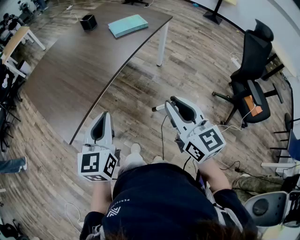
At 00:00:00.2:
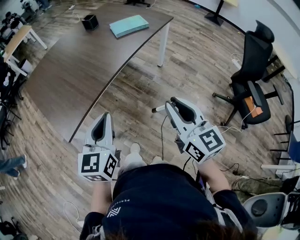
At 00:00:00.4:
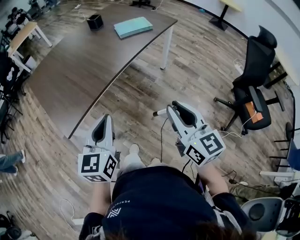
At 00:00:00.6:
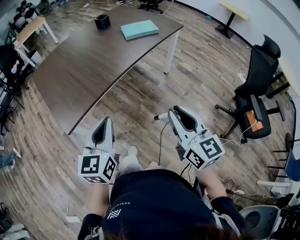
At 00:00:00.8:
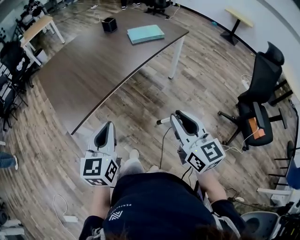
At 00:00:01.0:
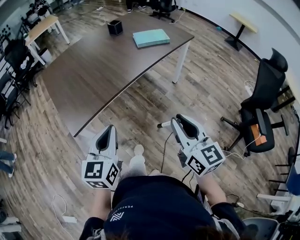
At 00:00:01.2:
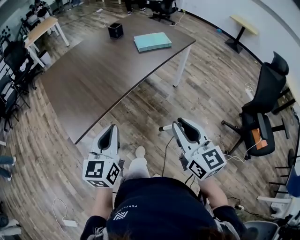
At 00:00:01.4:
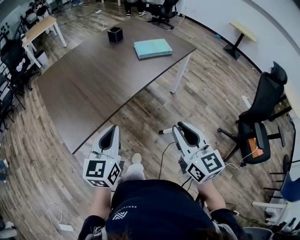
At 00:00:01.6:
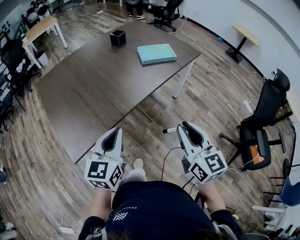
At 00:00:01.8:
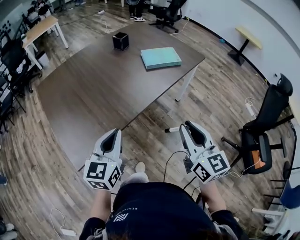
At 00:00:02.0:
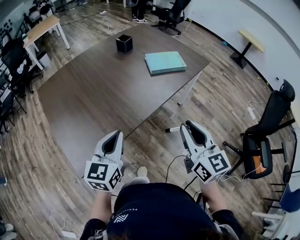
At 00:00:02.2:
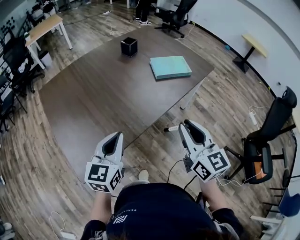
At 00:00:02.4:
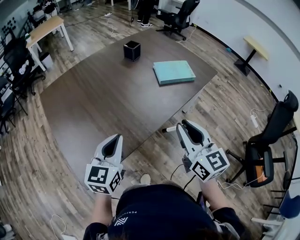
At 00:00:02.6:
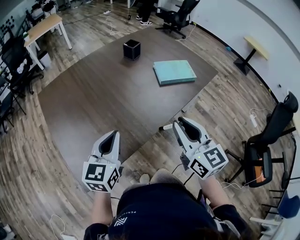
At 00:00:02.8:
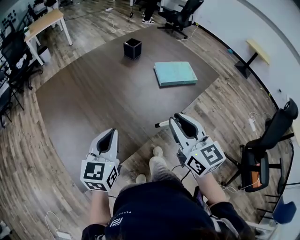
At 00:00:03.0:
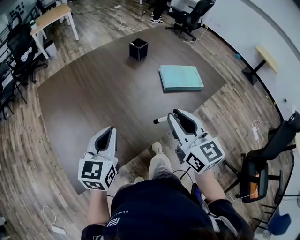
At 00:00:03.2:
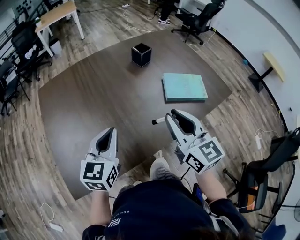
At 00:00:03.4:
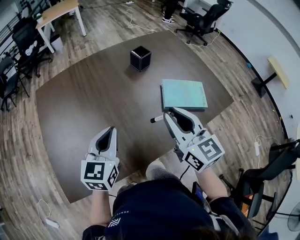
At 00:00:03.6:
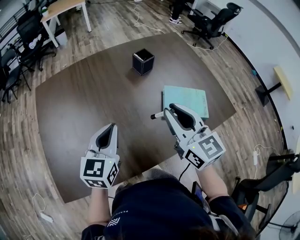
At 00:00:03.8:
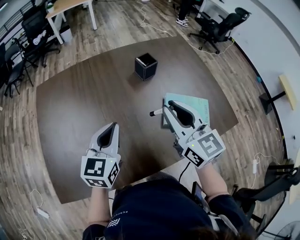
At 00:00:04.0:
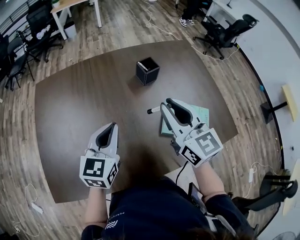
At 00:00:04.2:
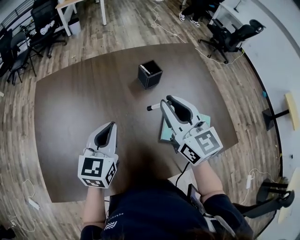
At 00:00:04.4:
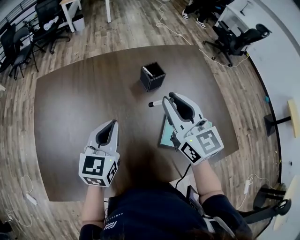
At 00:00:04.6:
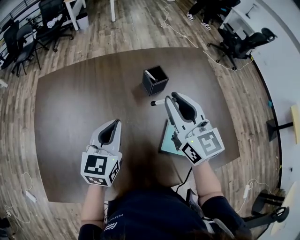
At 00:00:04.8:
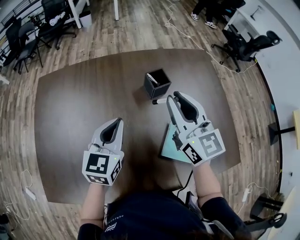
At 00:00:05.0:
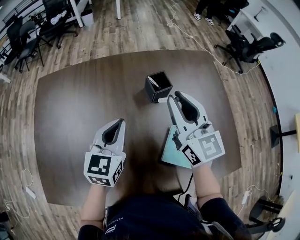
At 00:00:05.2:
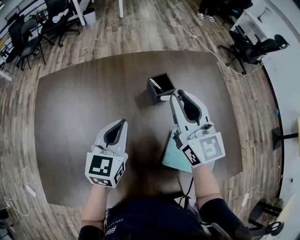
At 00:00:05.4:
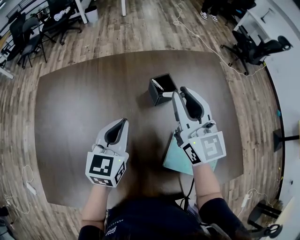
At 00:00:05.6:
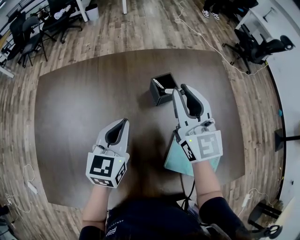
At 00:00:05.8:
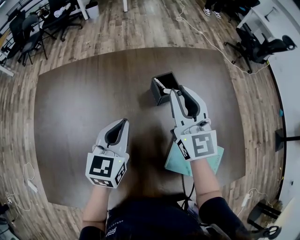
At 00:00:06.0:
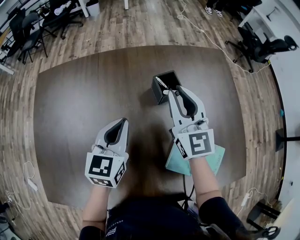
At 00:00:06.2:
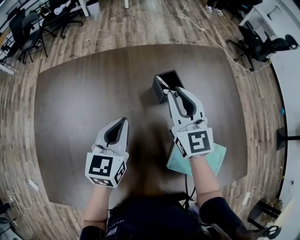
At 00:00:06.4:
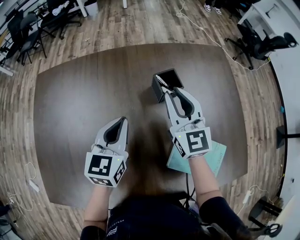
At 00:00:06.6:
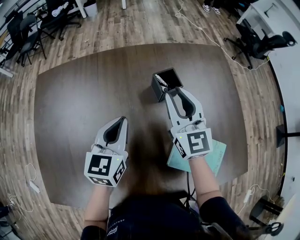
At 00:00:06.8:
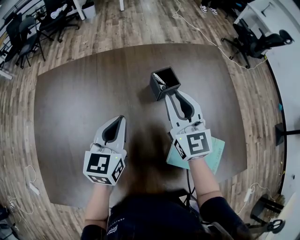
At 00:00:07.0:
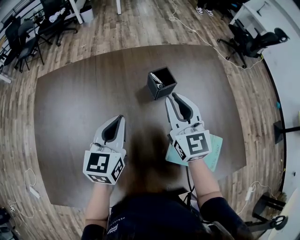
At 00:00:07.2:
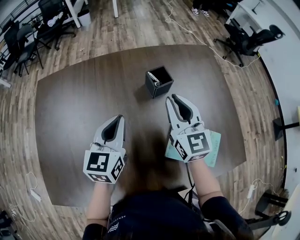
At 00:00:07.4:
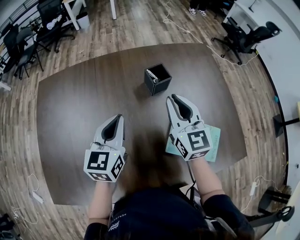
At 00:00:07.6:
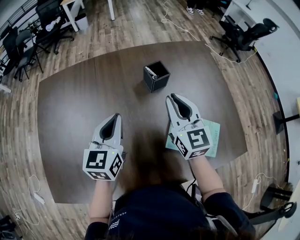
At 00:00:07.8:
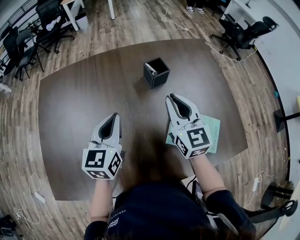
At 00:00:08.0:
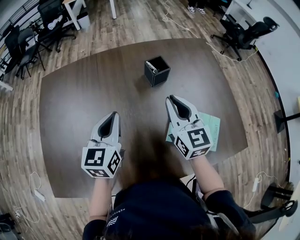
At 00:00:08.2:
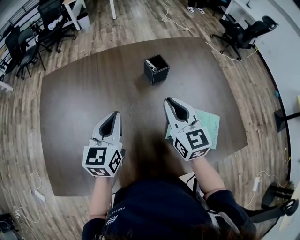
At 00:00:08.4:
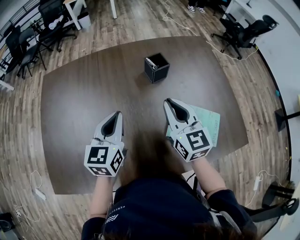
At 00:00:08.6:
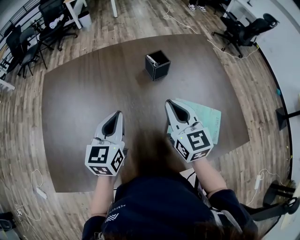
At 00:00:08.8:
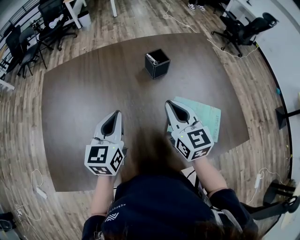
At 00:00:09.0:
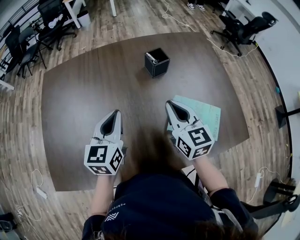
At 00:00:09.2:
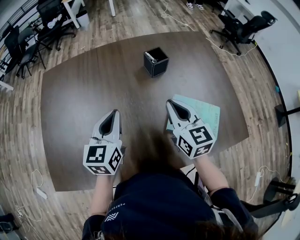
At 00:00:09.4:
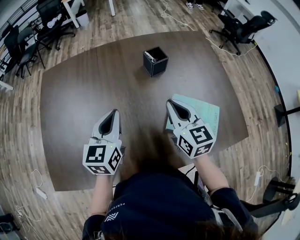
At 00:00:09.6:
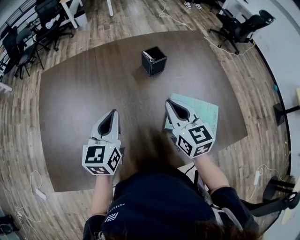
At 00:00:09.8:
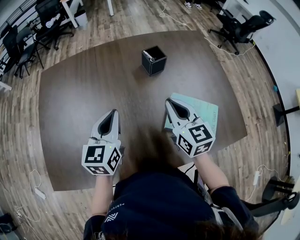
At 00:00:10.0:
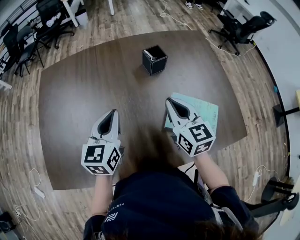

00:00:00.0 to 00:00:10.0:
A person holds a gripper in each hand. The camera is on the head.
00:00:00.0 to 00:00:01.4: The grippers both shift forward by about 5 cm.
00:00:01.4 to 00:00:02.8: The grippers both shift forward by about 25 cm.
00:00:02.8 to 00:00:04.2: The left gripper moves forward and to the right, approximately 25 cm, and swivels about 20 degrees. The right gripper heads forward, covering about 35 cm, and turns by roughly 30 degrees.
00:00:04.2 to 00:00:05.8: The grippers both shift forward by some 15 cm.
00:00:05.8 to 00:00:07.2: The right gripper is displaced backward by some 5 cm.
00:00:07.2 to 00:00:08.6: The grippers both shift backward by about 10 cm.
00:00:08.6 to 00:00:10.0: There are only small adjustments of the grippers.

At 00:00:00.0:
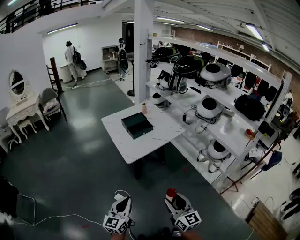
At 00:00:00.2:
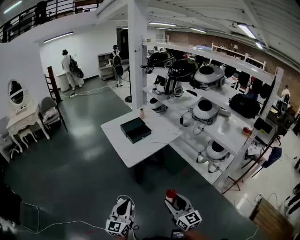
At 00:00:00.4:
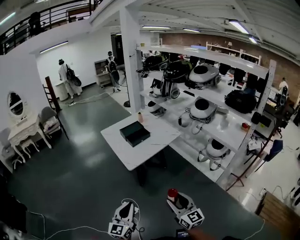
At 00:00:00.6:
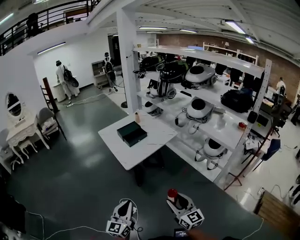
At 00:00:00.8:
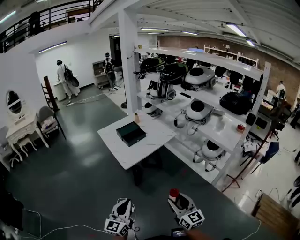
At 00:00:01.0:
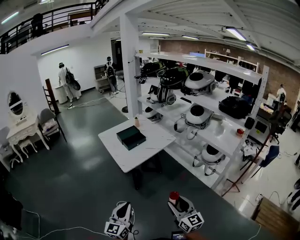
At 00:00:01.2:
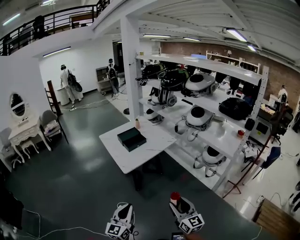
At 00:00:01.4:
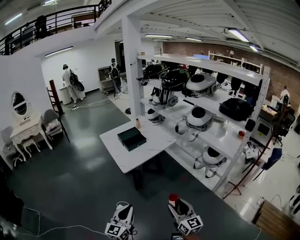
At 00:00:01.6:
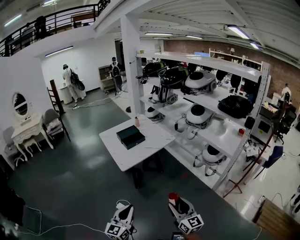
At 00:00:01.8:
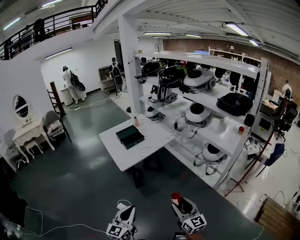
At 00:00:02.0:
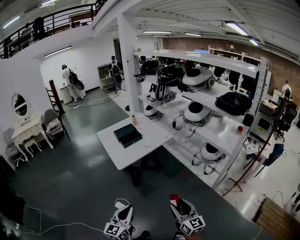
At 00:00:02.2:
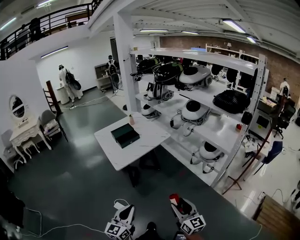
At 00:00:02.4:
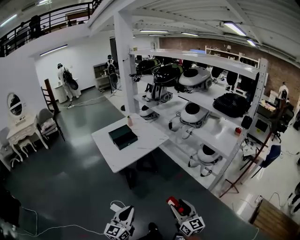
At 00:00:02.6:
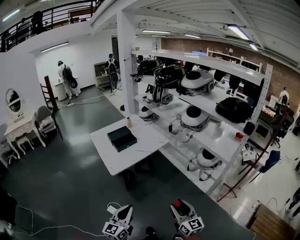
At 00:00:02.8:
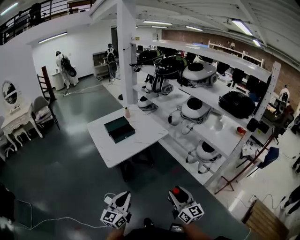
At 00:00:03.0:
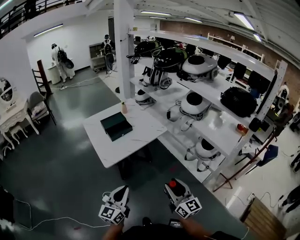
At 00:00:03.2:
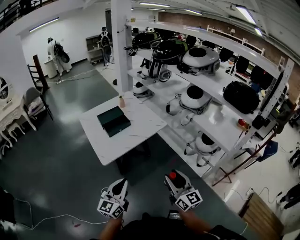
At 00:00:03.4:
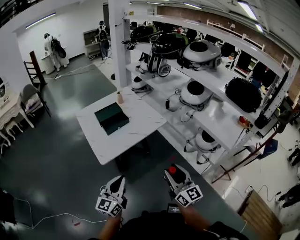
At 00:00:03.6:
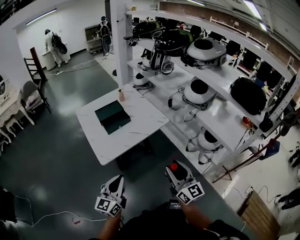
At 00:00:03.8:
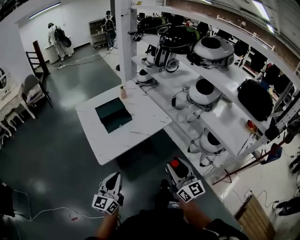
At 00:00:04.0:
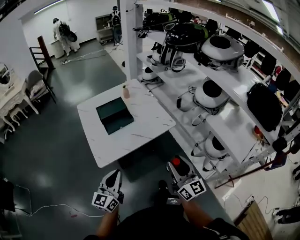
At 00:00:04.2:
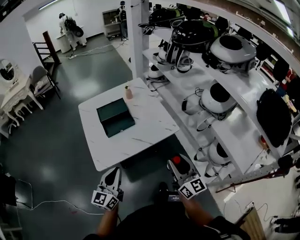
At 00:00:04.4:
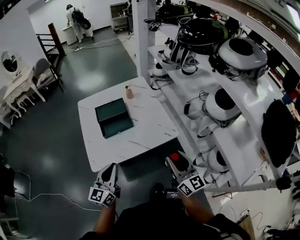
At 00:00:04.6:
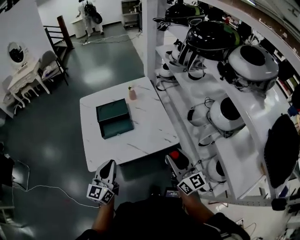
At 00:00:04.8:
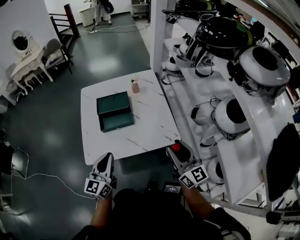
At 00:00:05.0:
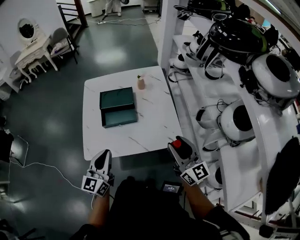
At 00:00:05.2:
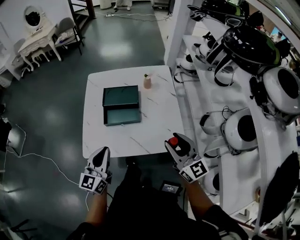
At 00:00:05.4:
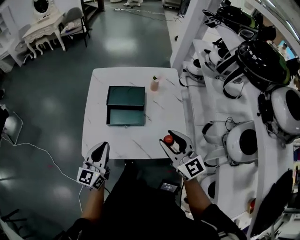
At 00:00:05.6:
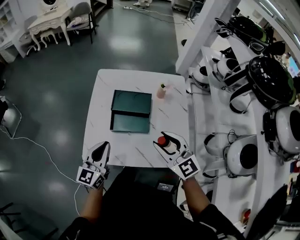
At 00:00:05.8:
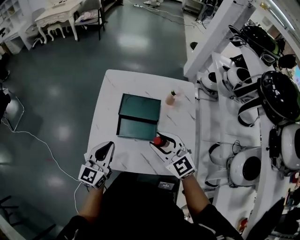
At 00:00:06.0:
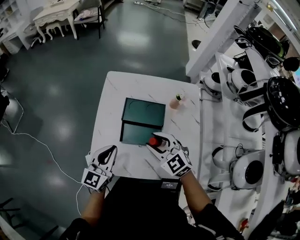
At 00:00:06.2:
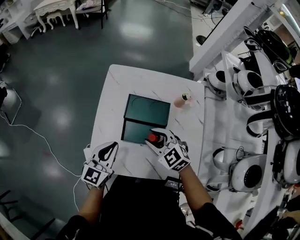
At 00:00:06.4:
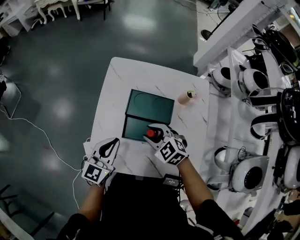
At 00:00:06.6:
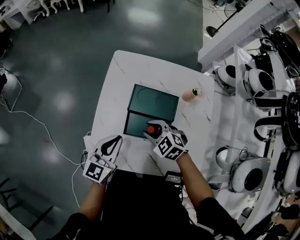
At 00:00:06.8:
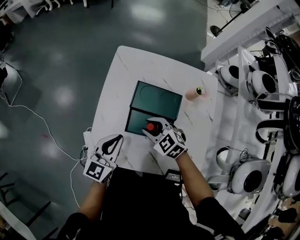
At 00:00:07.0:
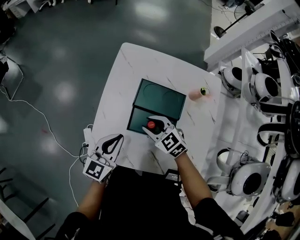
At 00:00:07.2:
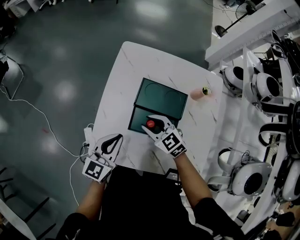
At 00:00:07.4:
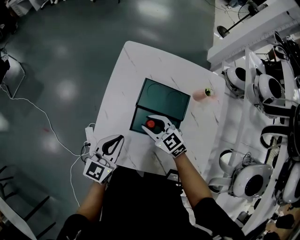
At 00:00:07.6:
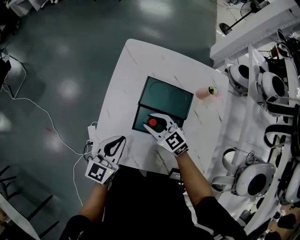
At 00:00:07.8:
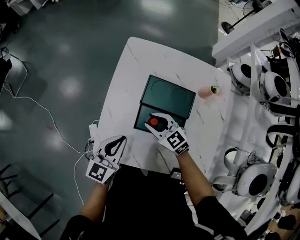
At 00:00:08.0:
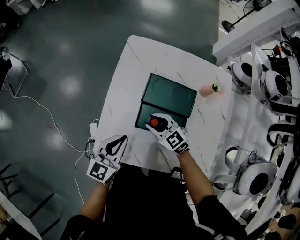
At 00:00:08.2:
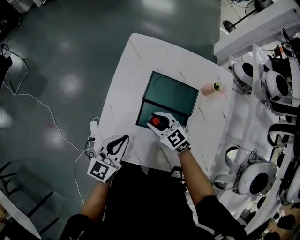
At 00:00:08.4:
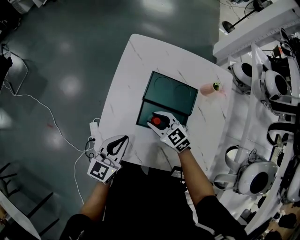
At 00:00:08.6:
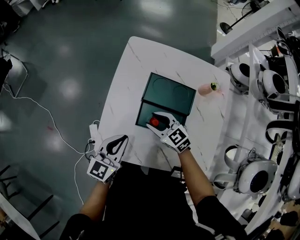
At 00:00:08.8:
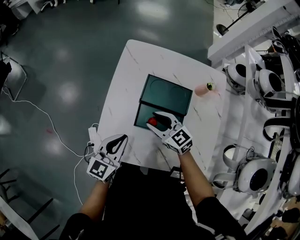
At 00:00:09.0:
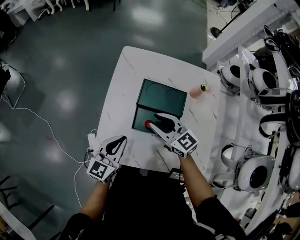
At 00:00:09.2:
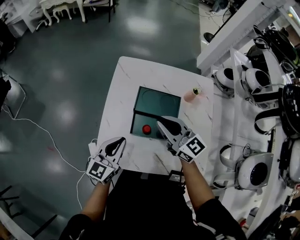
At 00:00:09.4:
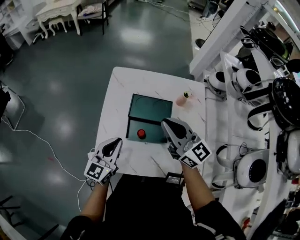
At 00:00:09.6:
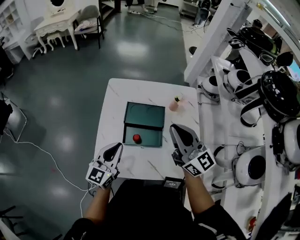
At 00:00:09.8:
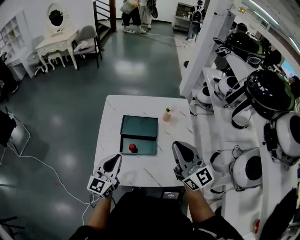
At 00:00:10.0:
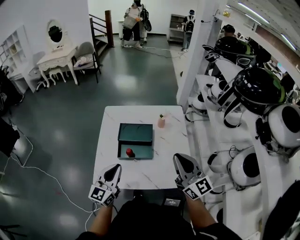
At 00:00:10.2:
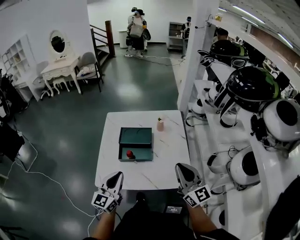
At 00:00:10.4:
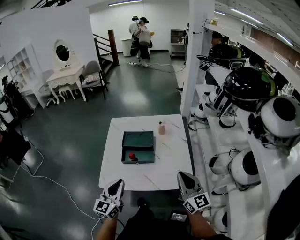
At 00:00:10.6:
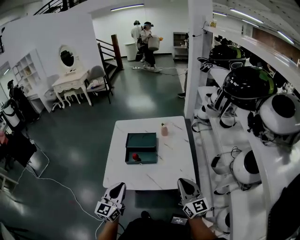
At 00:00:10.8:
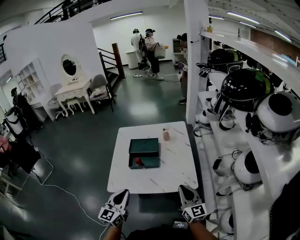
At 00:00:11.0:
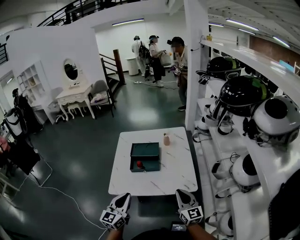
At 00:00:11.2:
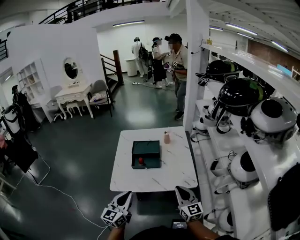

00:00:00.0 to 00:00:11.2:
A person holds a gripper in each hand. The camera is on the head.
00:00:00.0 to 00:00:01.6: The two grippers go about 10 cm to the right and backward.
00:00:01.6 to 00:00:03.2: The grippers both shift forward by some 20 cm.
00:00:03.2 to 00:00:04.8: The left gripper ends up roughly 30 cm from where it was, and changes its angle by some 30 degrees; the right gripper shifts by some 40 cm, and turns by roughly 20 degrees.
00:00:04.8 to 00:00:06.4: The right gripper moves some 40 cm, and tilts its fingers some 50 degrees downward, while the left gripper ends up approximately 25 cm from where it was.
00:00:06.4 to 00:00:08.0: The right gripper heads downward, covering roughly 5 cm, while the left gripper changes place by approximately 5 cm.
00:00:08.0 to 00:00:09.6: The left gripper shifts roughly 10 cm upward, while the right gripper goes some 35 cm upward and to the right, tilts its fingers about 40 degrees upward, and closes up.
00:00:09.6 to 00:00:11.2: The two grippers go some 25 cm backward. The right gripper swivels roughly 20 degrees.

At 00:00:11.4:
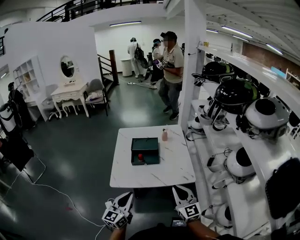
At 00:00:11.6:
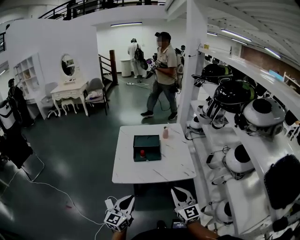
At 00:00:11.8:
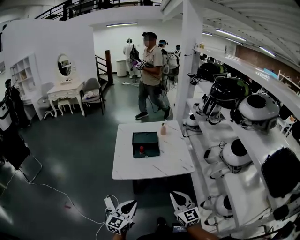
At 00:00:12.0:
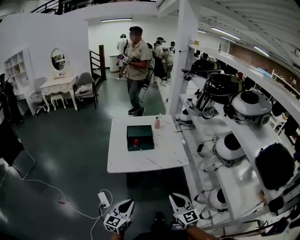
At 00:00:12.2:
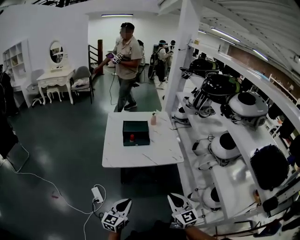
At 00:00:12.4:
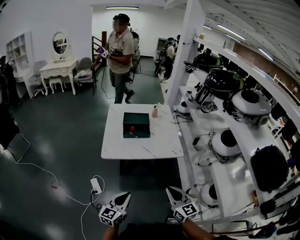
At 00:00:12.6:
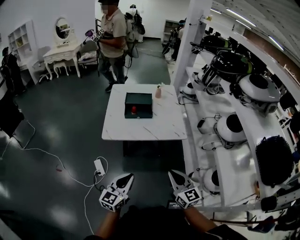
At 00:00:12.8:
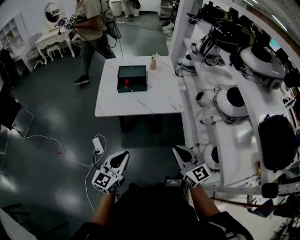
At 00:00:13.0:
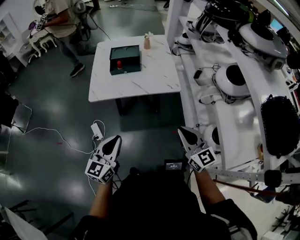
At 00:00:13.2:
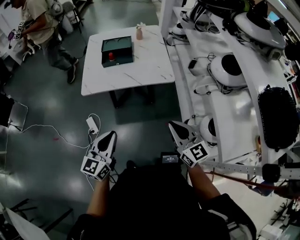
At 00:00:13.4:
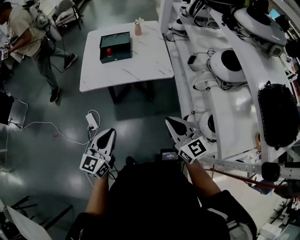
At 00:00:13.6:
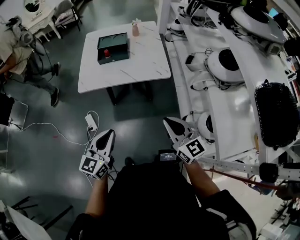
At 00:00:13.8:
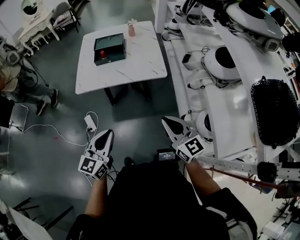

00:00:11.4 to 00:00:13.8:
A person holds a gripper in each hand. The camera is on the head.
00:00:11.4 to 00:00:12.6: The grippers both shift backward by roughly 15 cm.
00:00:12.6 to 00:00:13.8: The grippers both shift to the right by roughly 10 cm.
